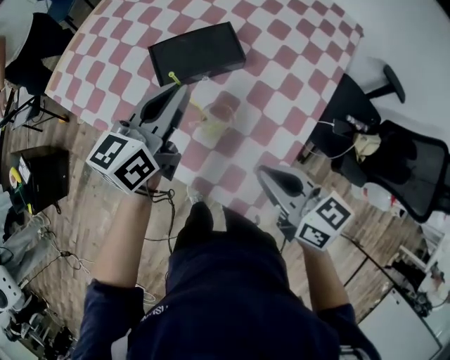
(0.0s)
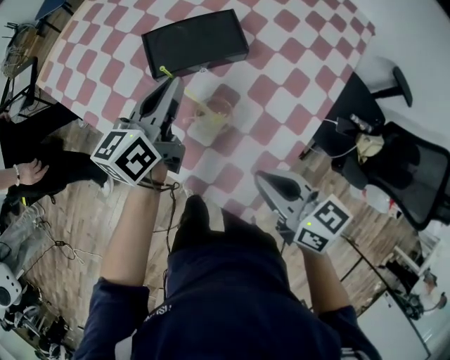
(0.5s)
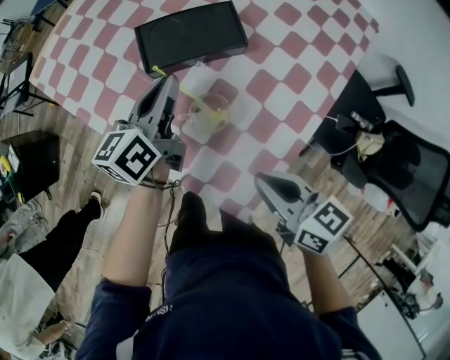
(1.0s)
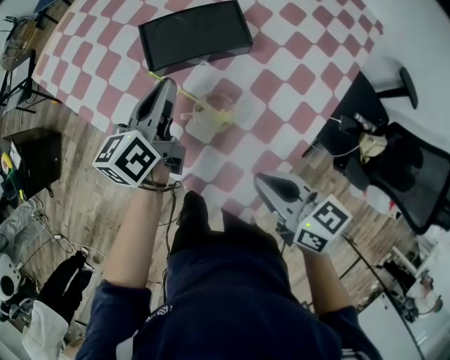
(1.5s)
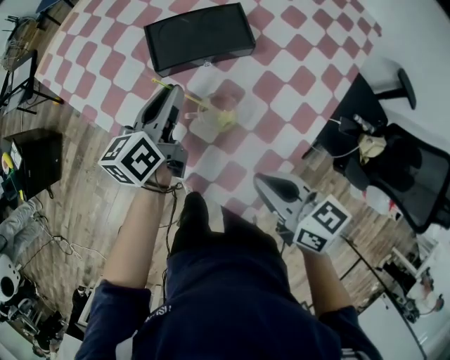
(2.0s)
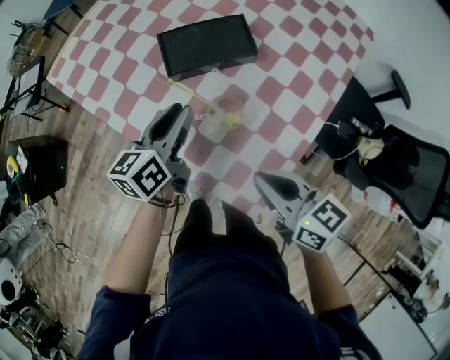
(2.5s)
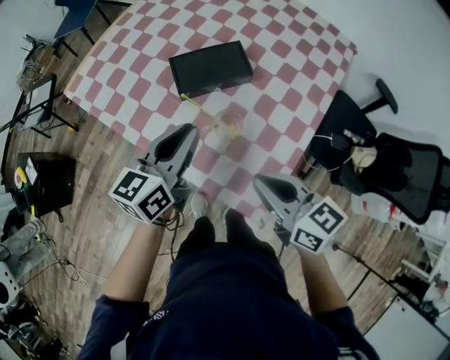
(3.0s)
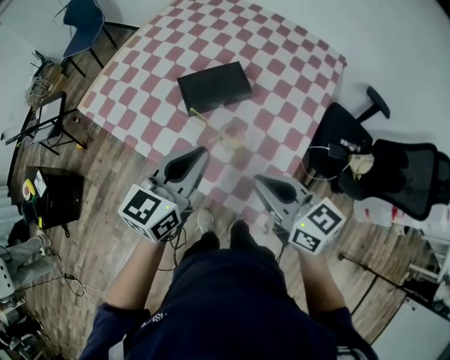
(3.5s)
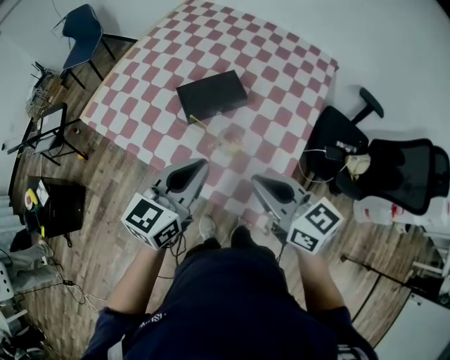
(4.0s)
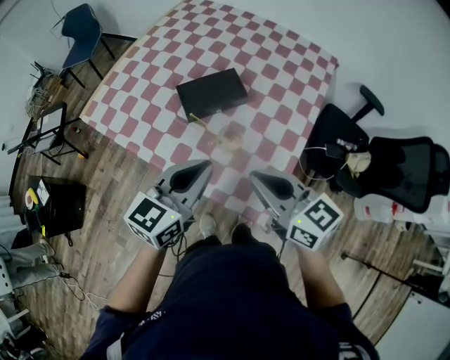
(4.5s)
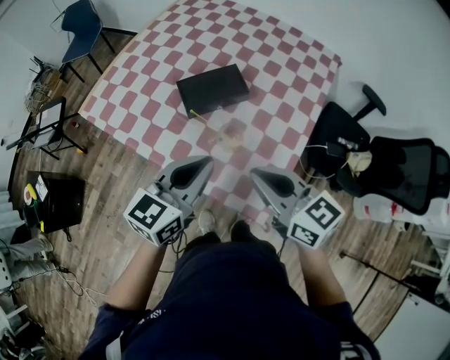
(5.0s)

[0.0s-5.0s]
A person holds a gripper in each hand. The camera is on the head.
0.0s to 2.5s: The left gripper goes some 10 cm downward, and opens its fingers.
2.5s to 5.0s: The left gripper goes some 20 cm upward and backward, turns by some 30 degrees, and closes. Meanwhile the right gripper heads upward, covering approximately 15 cm.

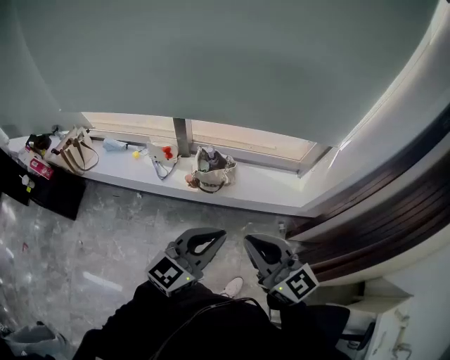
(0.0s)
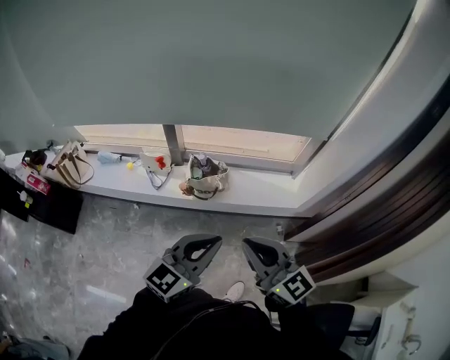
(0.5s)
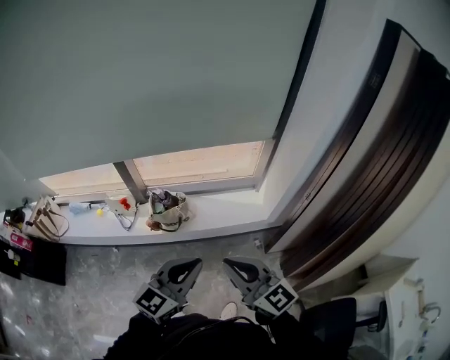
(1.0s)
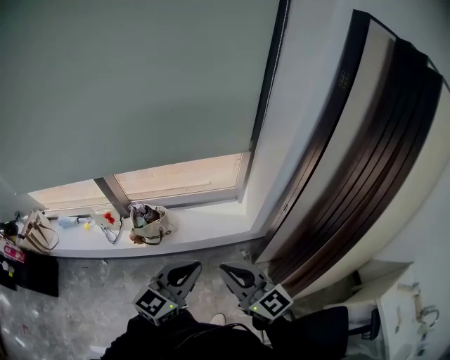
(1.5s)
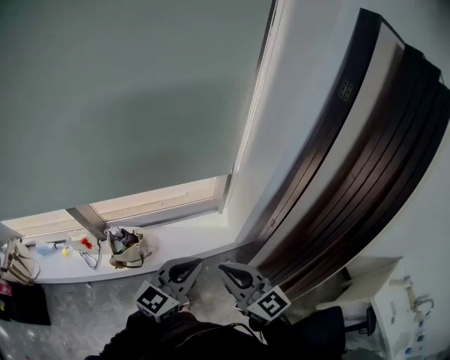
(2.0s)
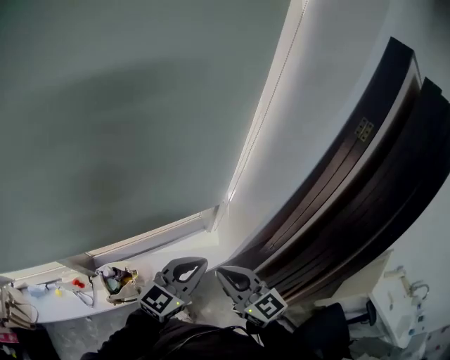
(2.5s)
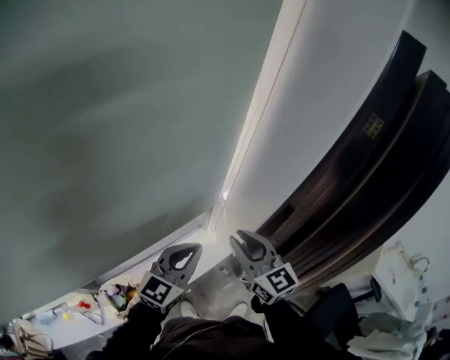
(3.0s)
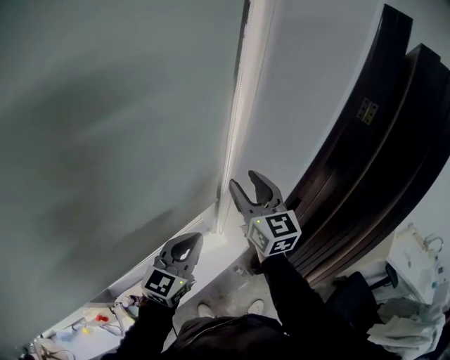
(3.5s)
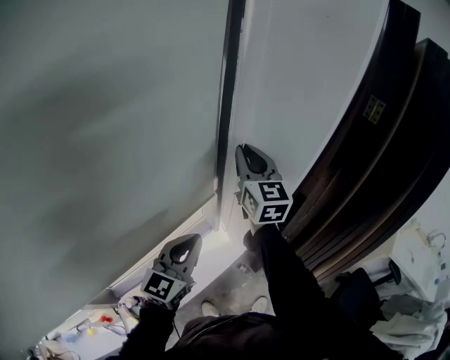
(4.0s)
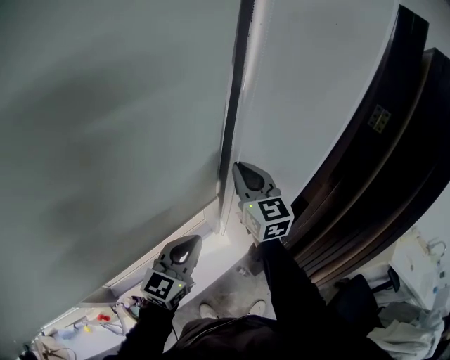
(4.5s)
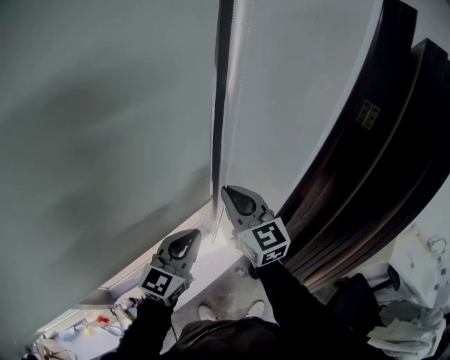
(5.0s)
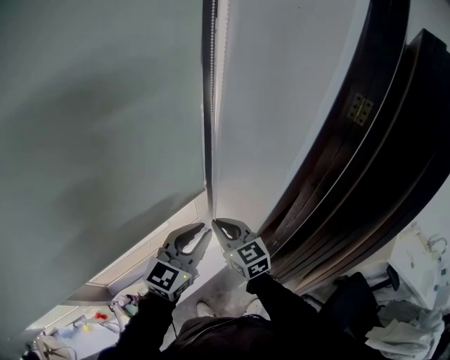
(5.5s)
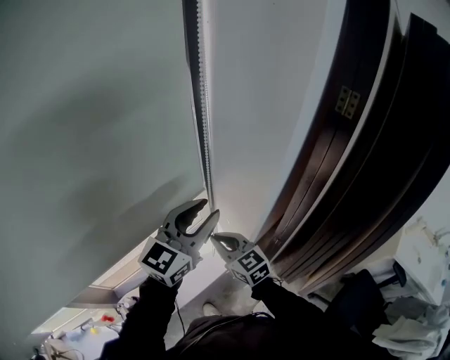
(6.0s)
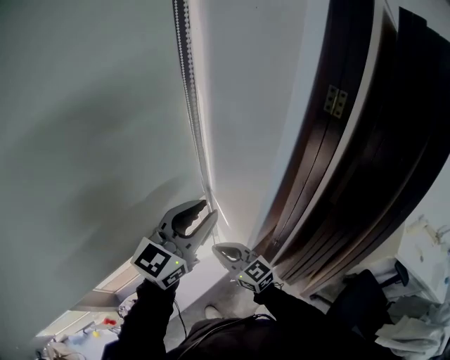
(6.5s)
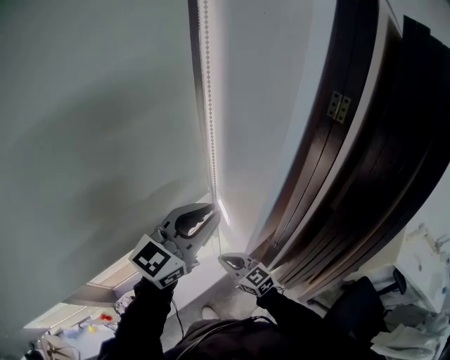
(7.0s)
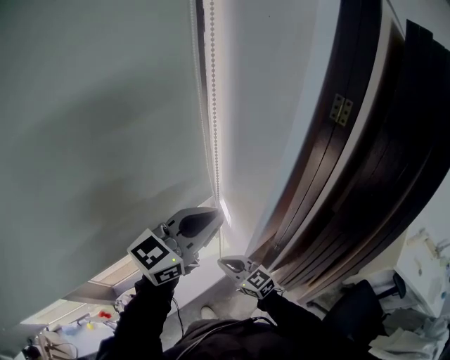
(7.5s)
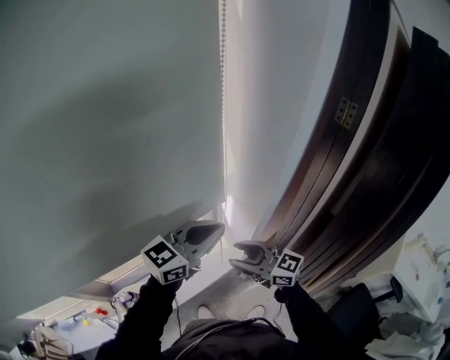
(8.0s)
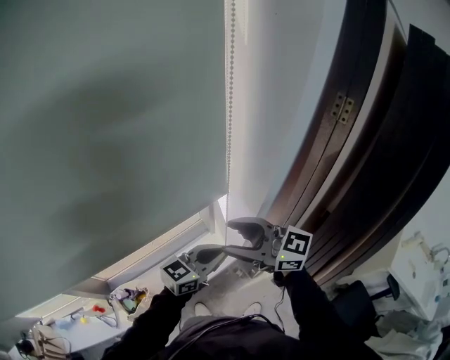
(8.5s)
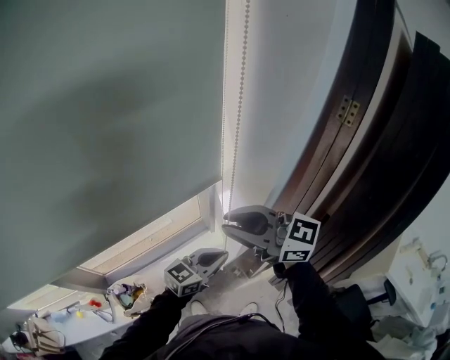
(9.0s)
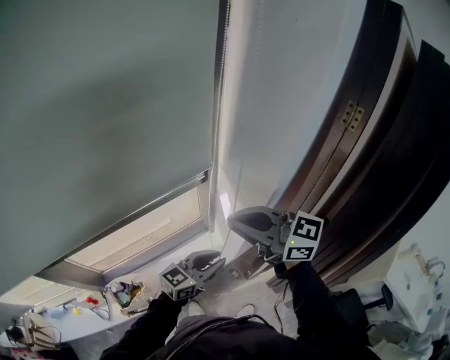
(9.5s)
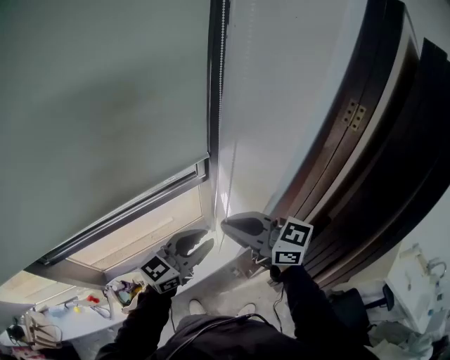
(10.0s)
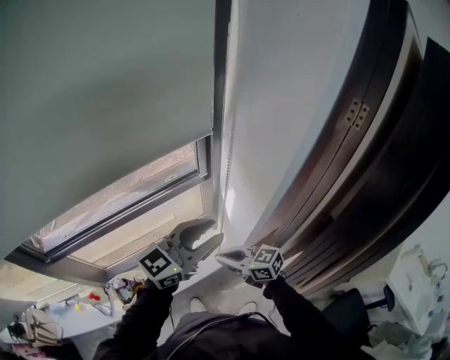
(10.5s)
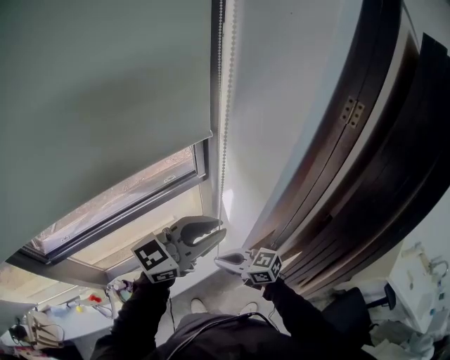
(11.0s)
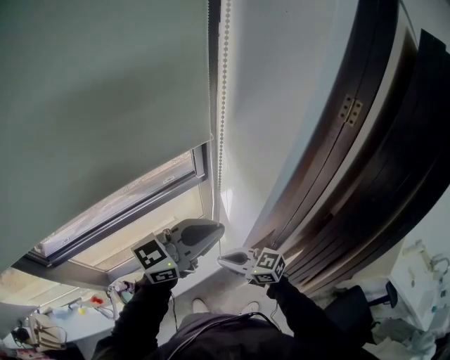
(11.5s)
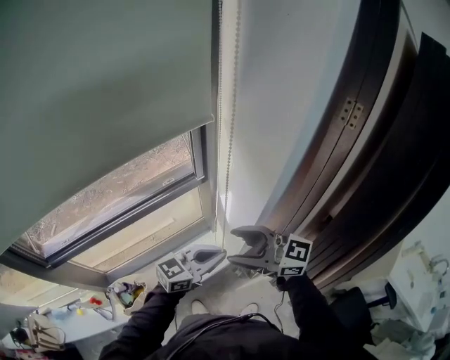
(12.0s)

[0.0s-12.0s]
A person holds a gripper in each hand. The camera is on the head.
0.0s to 2.0s: The two grippers go approximately 30 cm to the right and forward. The right gripper turns by about 20 degrees.
2.0s to 4.0s: The right gripper moves approximately 50 cm, changes its angle by approximately 50 degrees, and opens, then closes once more; the left gripper changes place by roughly 30 cm.
4.0s to 6.0s: The right gripper moves downward and backward, some 25 cm, and swivels approximately 30 degrees. Meanwhile the left gripper moves to the right, upward and forward, some 15 cm, and opens up.
6.0s to 8.0s: The left gripper changes place by some 5 cm, and closes; the right gripper travels backward and to the right by roughly 10 cm, goes downward and returns, approximately 10 cm each way, rotates some 30 degrees, and opens its fingers.
8.0s to 10.0s: The left gripper travels downward and back again, approximately 15 cm each way, and opens its fingers; the right gripper shifts some 15 cm upward, and closes up.
10.0s to 12.0s: The left gripper moves downward, some 5 cm, and closes up. Meanwhile the right gripper travels downward and back again, about 20 cm each way, and opens its fingers.

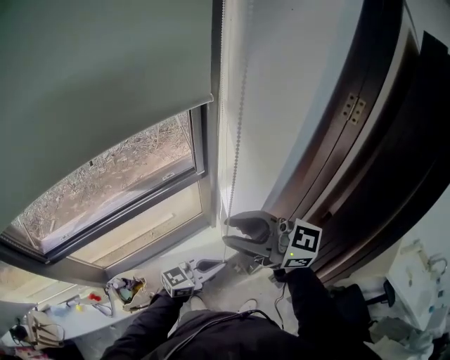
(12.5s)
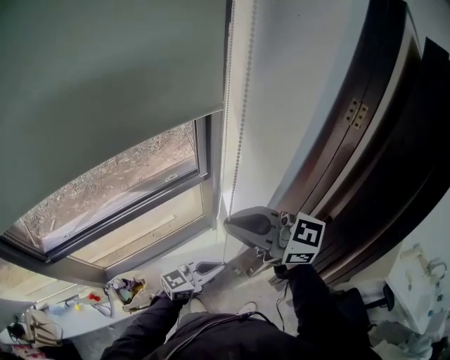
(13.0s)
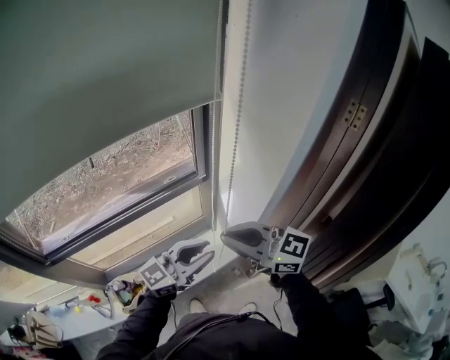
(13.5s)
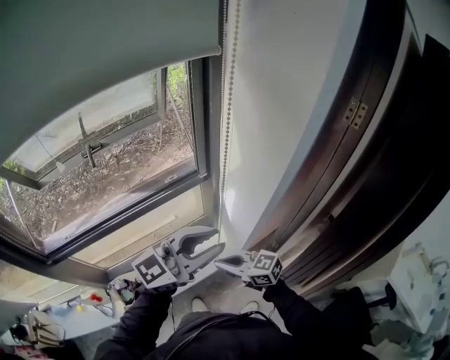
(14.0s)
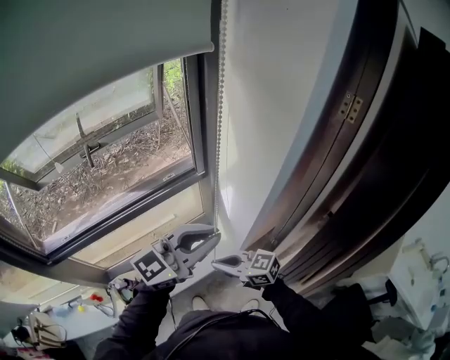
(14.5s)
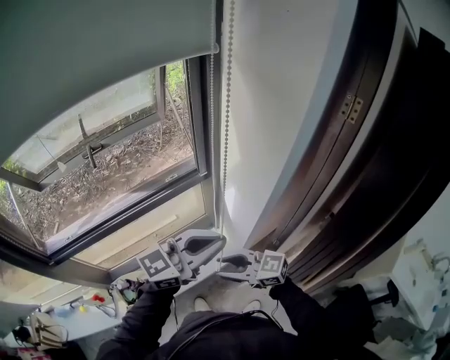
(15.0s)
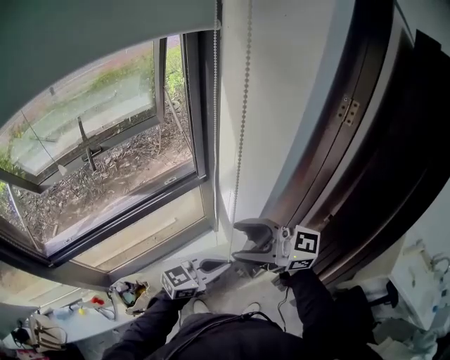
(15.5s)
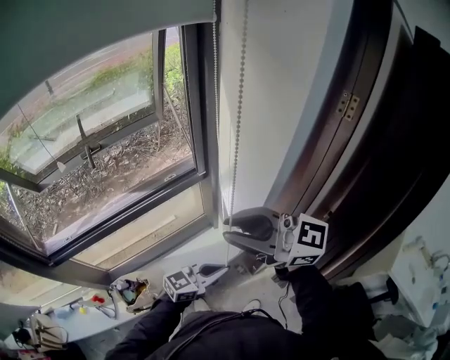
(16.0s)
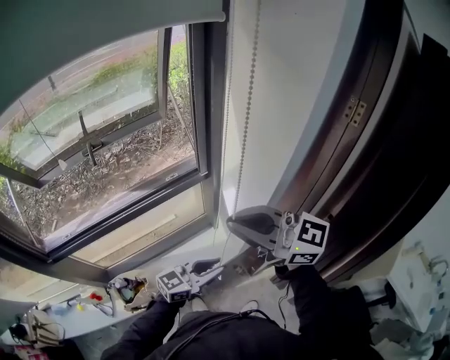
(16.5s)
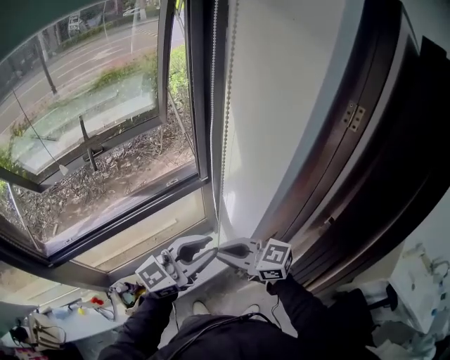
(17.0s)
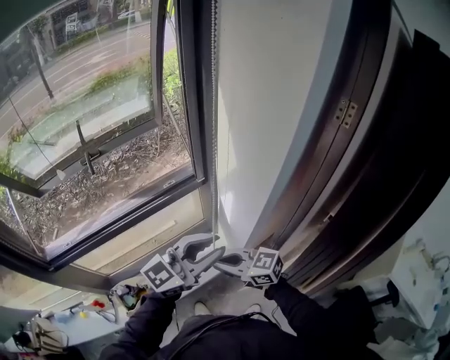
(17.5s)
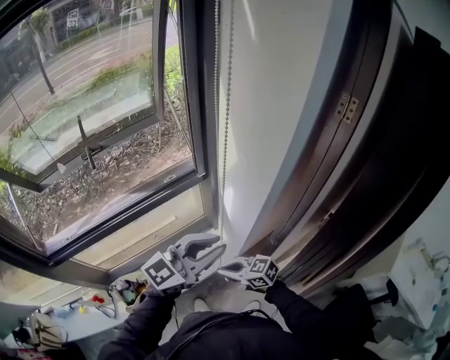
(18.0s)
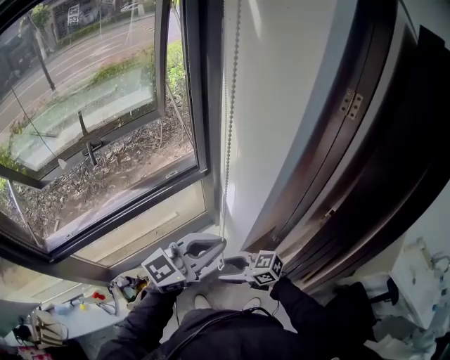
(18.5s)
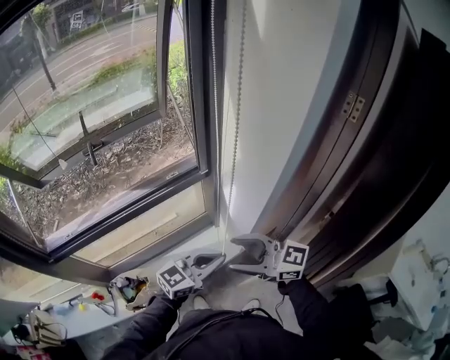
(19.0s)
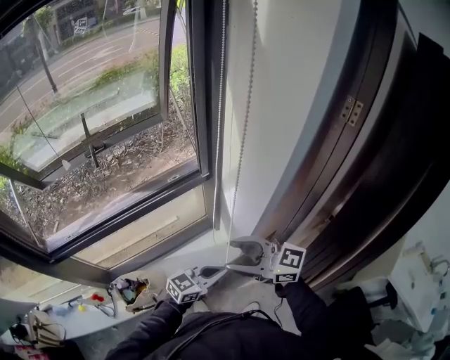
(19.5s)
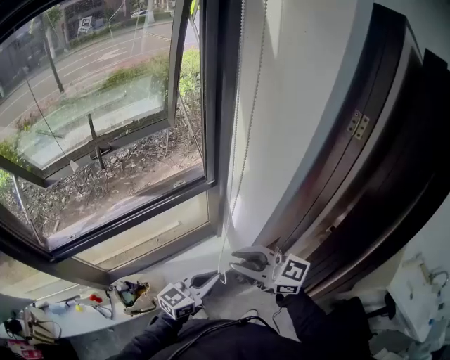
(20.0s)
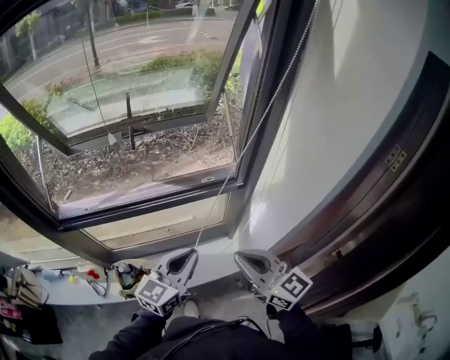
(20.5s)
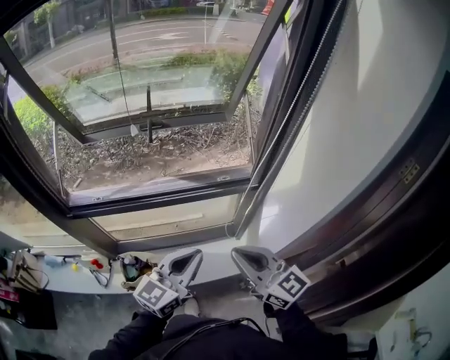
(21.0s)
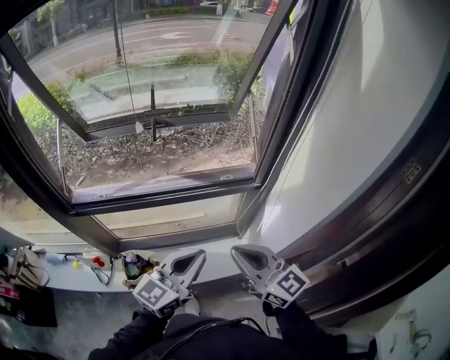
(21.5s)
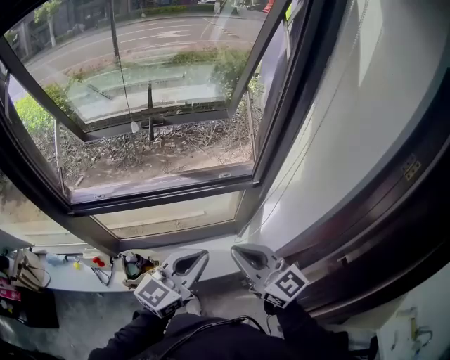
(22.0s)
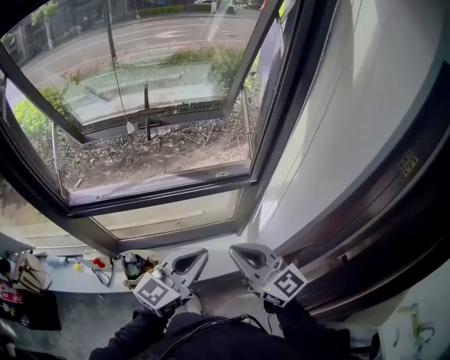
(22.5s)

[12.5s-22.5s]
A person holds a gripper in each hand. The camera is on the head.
12.5s to 14.5s: The right gripper heads downward, covering about 25 cm, swivels some 30 degrees, and closes. The left gripper goes approximately 20 cm upward.
14.5s to 16.5s: The right gripper is displaced upward by roughly 25 cm, changes its angle by roughly 30 degrees, and opens, then closes again, while the left gripper goes roughly 20 cm downward.
16.5s to 18.5s: The right gripper is displaced downward by approximately 30 cm, rotates about 30 degrees, and opens up; the left gripper is displaced upward by about 15 cm.
18.5s to 20.5s: The right gripper travels upward by about 20 cm, rotates roughly 30 degrees, and closes up. The left gripper moves some 20 cm downward and comes back, and changes its angle by approximately 40 degrees.
20.5s to 22.5s: The left gripper moves about 5 cm.
